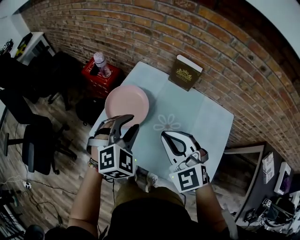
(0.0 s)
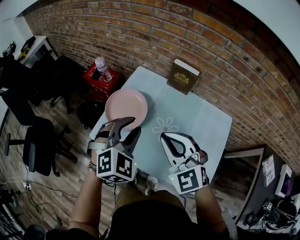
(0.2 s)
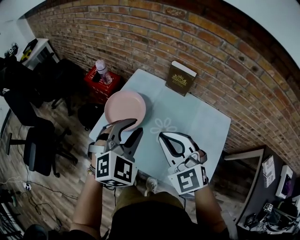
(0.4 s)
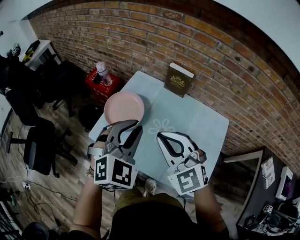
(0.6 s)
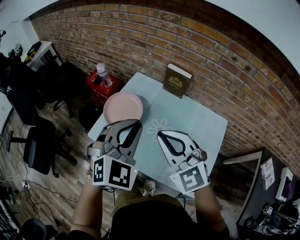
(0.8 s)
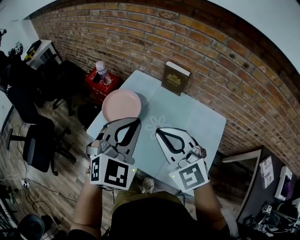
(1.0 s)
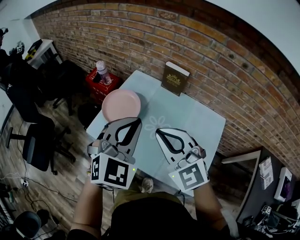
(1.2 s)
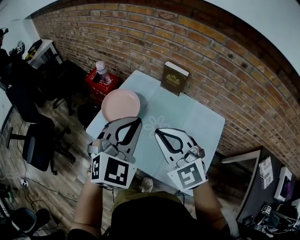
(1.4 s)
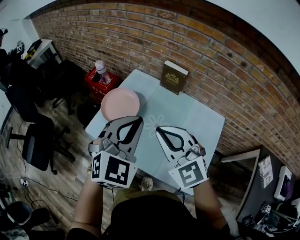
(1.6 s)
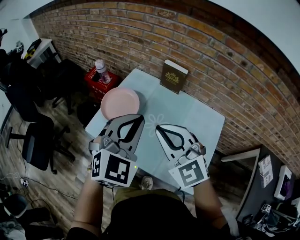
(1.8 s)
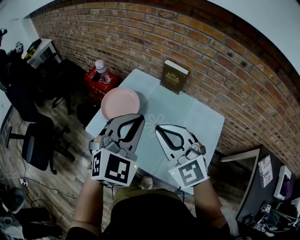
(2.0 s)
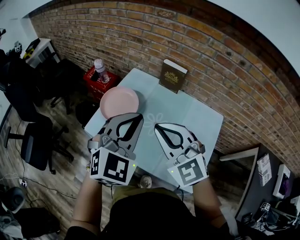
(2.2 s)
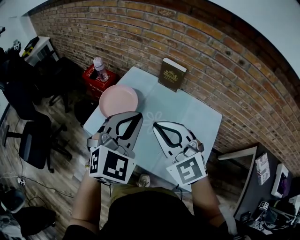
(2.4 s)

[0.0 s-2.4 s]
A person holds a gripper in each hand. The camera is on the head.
0.0 to 1.2 s: The left gripper travels upward, backward and to the right by roughly 20 cm, turns by about 20 degrees, and closes its fingers. The right gripper goes some 10 cm backward and upward.
1.2 to 2.4 s: Both grippers stay about where they are.

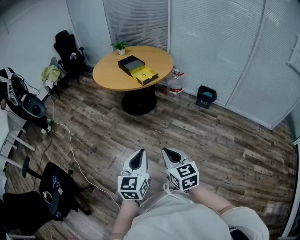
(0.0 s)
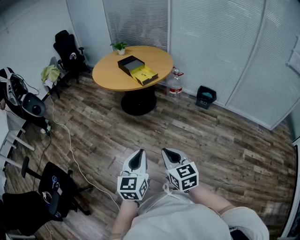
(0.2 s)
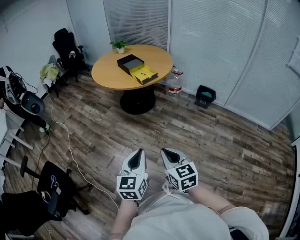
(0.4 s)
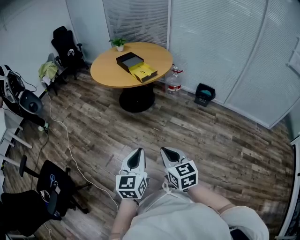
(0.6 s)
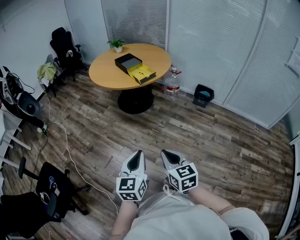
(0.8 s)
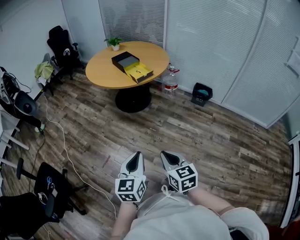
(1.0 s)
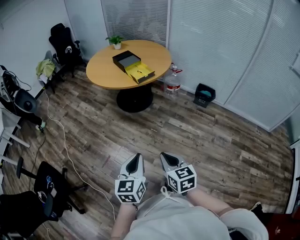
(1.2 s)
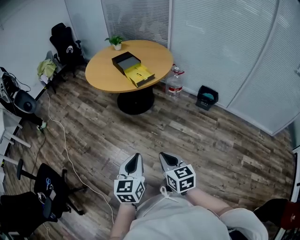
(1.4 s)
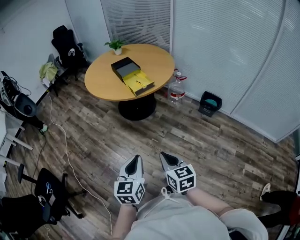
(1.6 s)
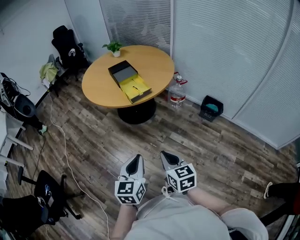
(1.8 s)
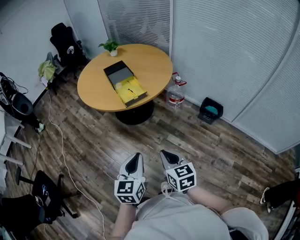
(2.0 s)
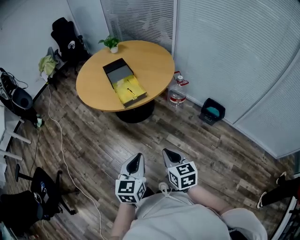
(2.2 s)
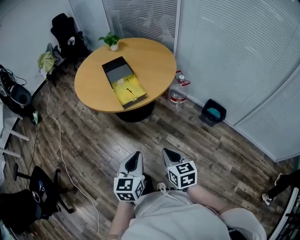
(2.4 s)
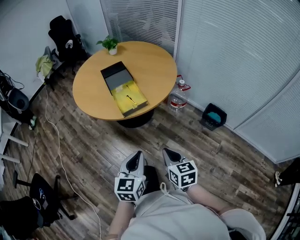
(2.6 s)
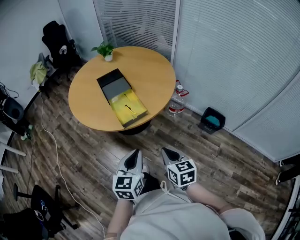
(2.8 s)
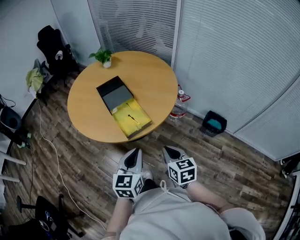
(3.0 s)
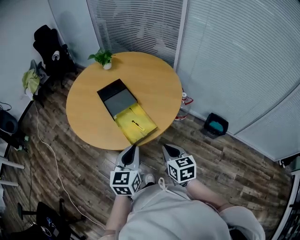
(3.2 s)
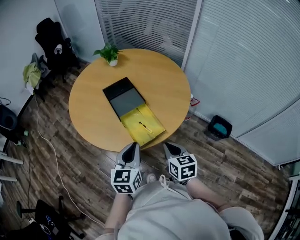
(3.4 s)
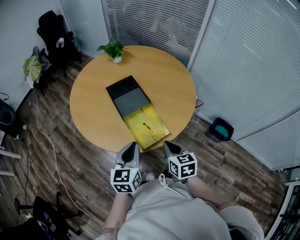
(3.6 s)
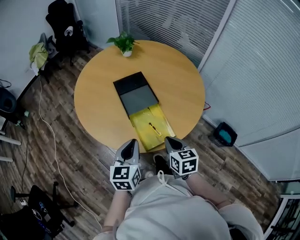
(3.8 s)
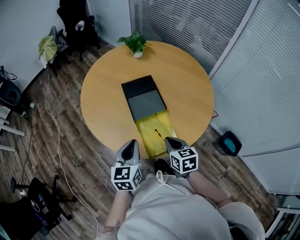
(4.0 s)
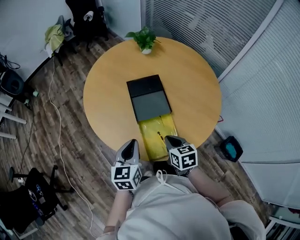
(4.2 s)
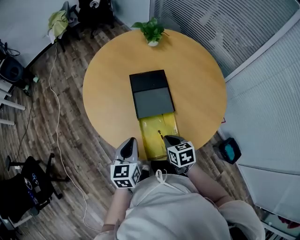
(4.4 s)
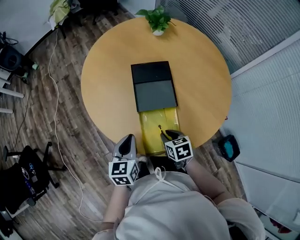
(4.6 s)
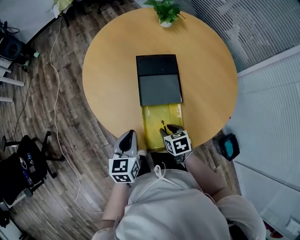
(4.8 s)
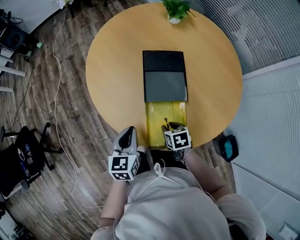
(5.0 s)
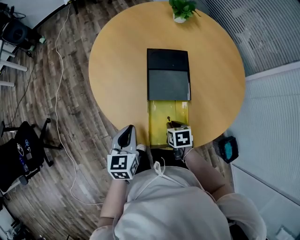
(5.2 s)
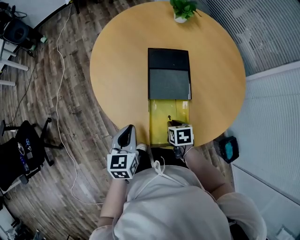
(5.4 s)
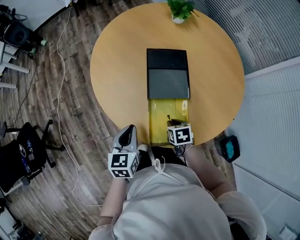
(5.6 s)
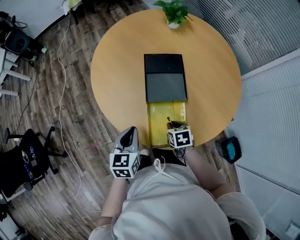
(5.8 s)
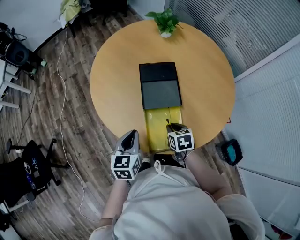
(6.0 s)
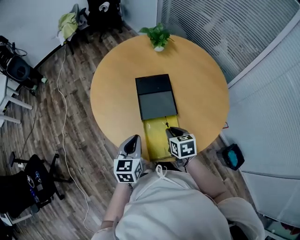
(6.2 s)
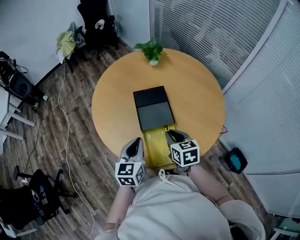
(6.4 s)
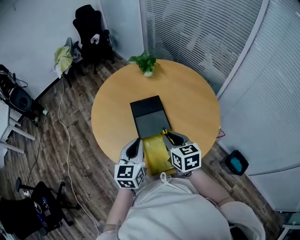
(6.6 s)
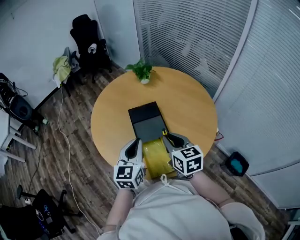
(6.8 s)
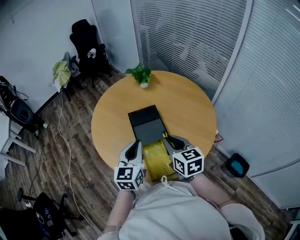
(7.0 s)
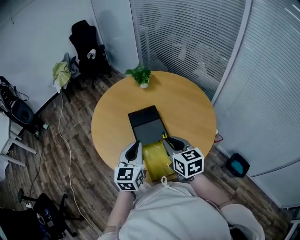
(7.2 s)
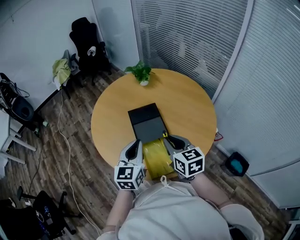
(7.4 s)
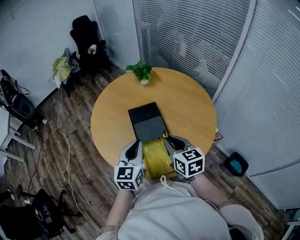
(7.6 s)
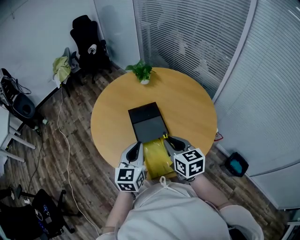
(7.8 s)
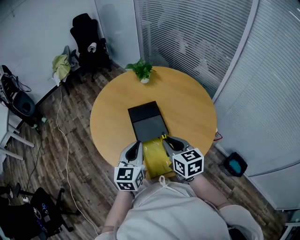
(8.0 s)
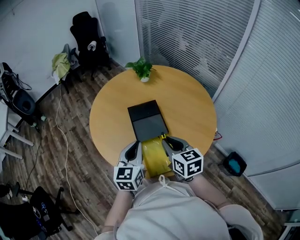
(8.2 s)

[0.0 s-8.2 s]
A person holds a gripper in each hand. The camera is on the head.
0.0 to 1.6 s: Both grippers move forward and to the right, about 20 cm.
1.6 to 3.2 s: The two grippers travel together, forward, some 50 cm.
3.2 to 5.0 s: The right gripper changes place by approximately 35 cm, tilts its fingers some 30 degrees downward, and opens up; the left gripper changes place by approximately 30 cm, and turns by approximately 40 degrees.
5.0 to 6.6 s: The right gripper travels upward by some 25 cm, tips its fingers upward by approximately 40 degrees, and closes. The left gripper is displaced upward and to the right by approximately 15 cm, and rotates roughly 20 degrees.
6.6 to 8.2 s: The grippers move only a little.

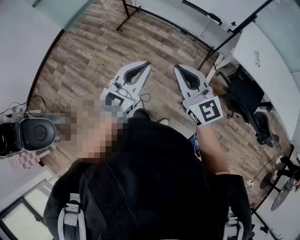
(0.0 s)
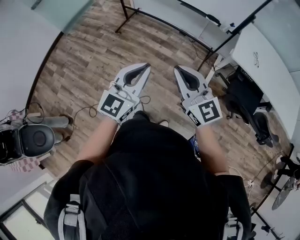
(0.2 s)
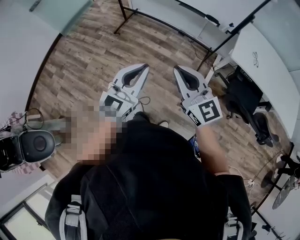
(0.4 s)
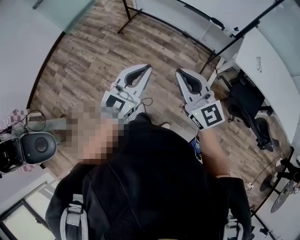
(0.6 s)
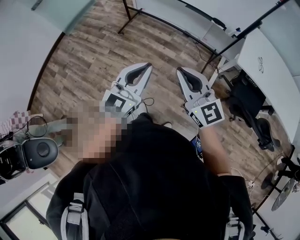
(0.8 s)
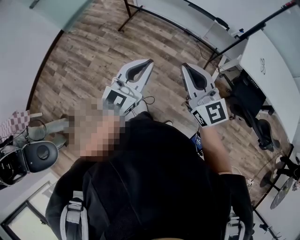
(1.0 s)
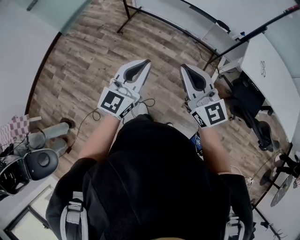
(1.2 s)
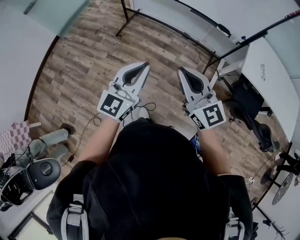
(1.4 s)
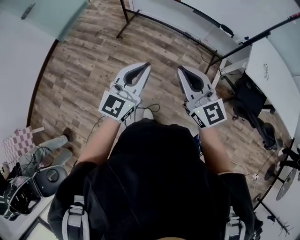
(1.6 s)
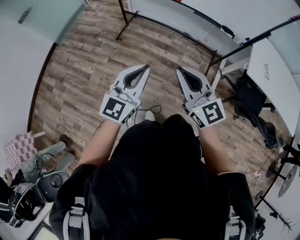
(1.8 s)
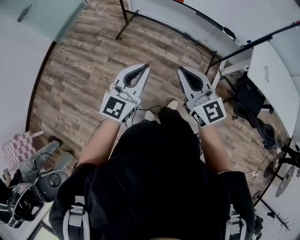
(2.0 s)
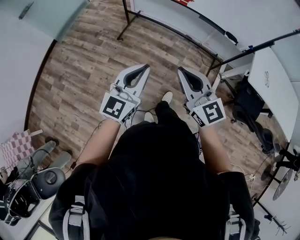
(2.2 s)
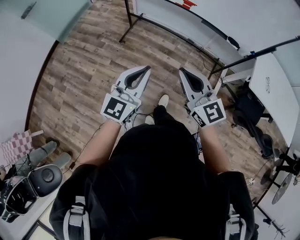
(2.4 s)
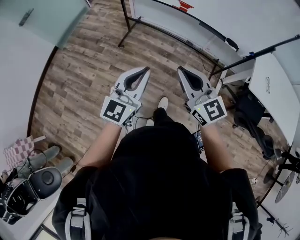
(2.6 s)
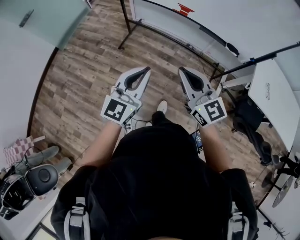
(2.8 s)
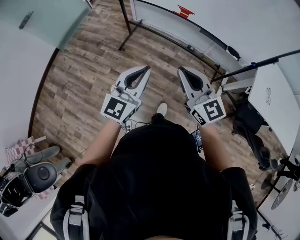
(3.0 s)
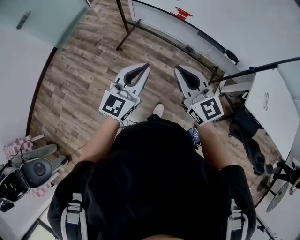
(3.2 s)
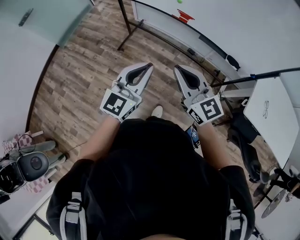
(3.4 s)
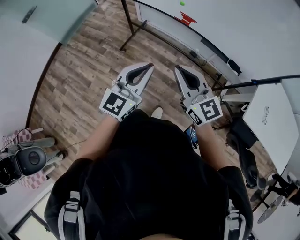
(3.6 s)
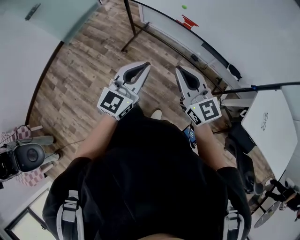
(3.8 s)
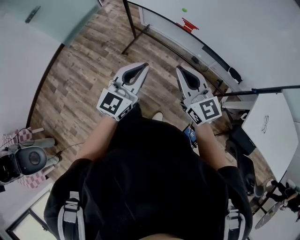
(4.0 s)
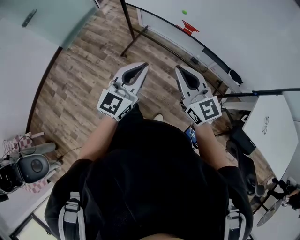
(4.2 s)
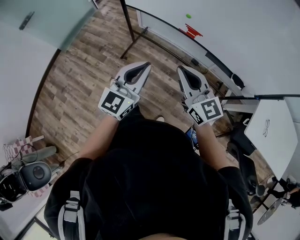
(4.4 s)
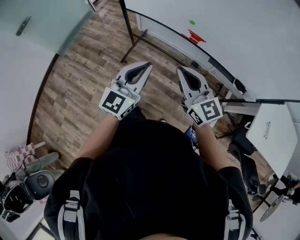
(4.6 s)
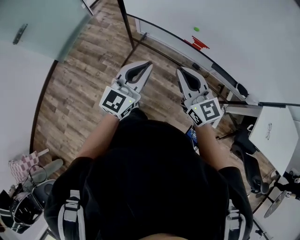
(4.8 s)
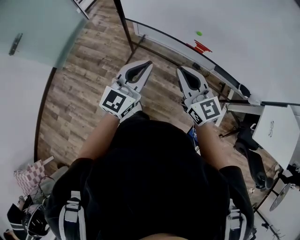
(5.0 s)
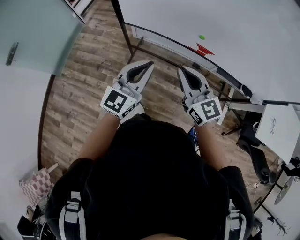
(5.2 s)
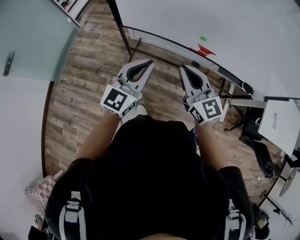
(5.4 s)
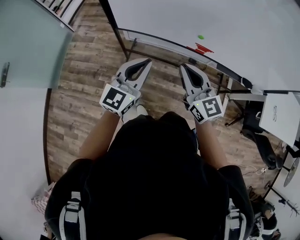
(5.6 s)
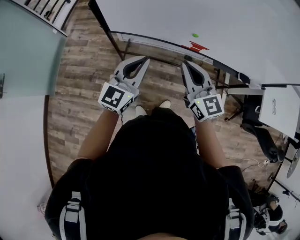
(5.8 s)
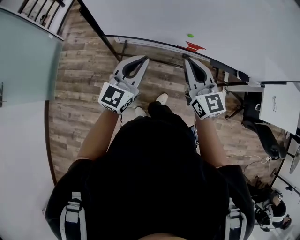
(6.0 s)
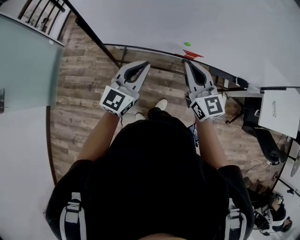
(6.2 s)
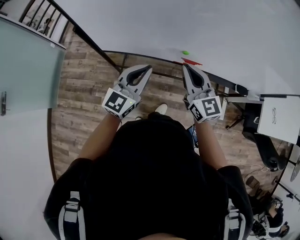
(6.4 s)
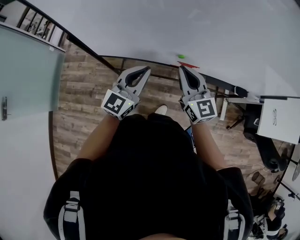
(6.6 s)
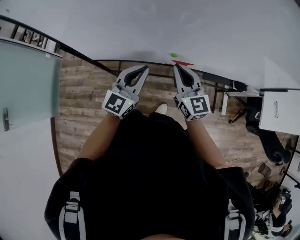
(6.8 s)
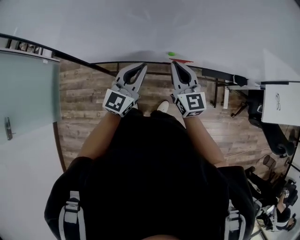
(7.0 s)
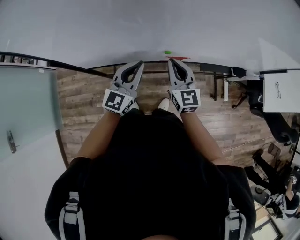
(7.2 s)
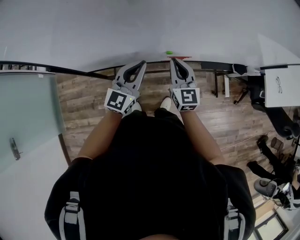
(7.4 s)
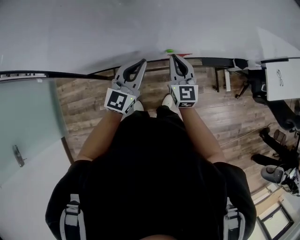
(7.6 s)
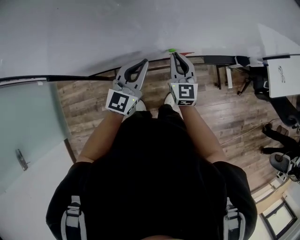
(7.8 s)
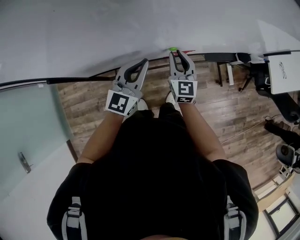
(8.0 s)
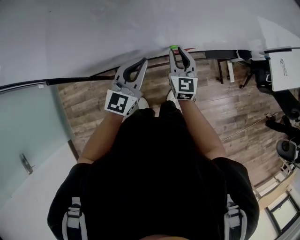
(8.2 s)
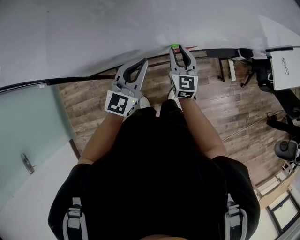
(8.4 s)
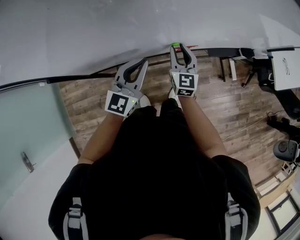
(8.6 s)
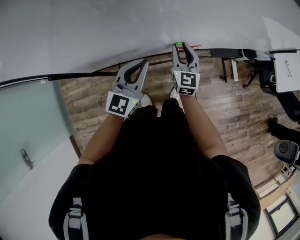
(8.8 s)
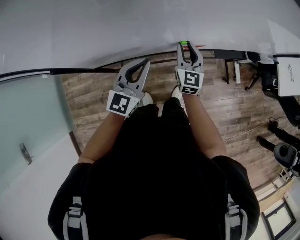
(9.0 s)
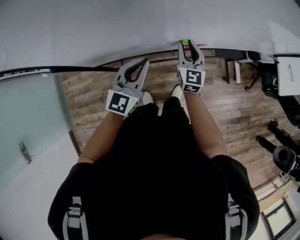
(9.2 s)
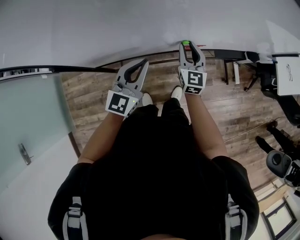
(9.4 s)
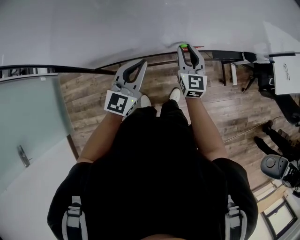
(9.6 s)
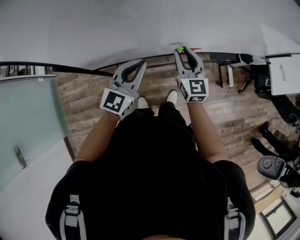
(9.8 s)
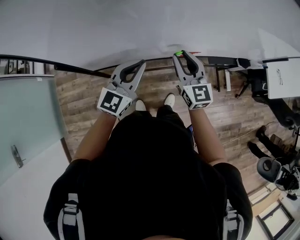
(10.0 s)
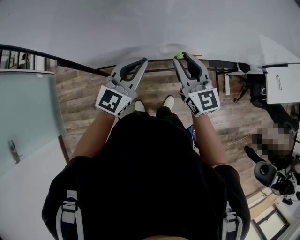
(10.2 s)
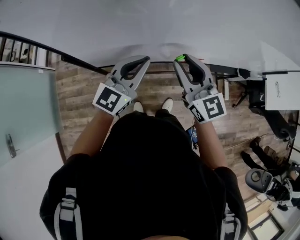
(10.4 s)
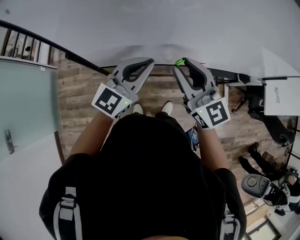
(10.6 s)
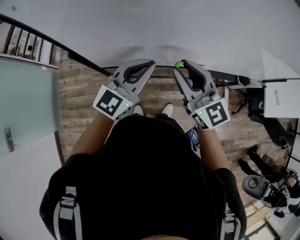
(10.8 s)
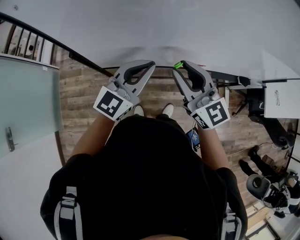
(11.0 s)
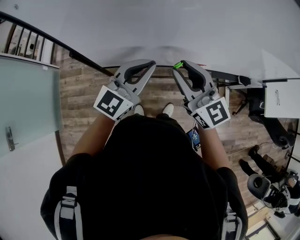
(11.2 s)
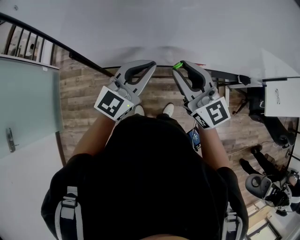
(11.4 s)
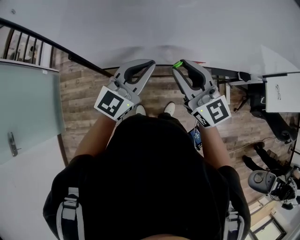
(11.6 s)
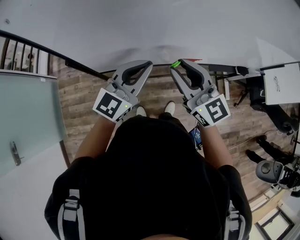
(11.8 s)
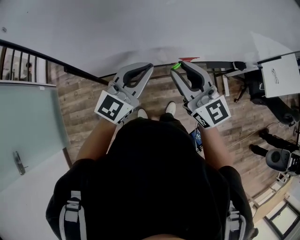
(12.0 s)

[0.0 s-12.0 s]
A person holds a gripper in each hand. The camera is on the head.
0.0 to 1.6 s: The grippers both shift forward and to the left by approximately 20 cm.
1.6 to 3.0 s: The grippers both shift forward by about 20 cm.
3.0 to 4.4 s: Both grippers travel together forward, roughly 20 cm.
4.4 to 6.0 s: The left gripper ends up about 30 cm from where it was, and swivels approximately 20 degrees; the right gripper changes place by roughly 25 cm, and changes its angle by roughly 30 degrees.
6.0 to 7.6 s: The right gripper is displaced forward and downward by roughly 20 cm, and rotates some 30 degrees. The left gripper heads forward, covering roughly 20 cm.
7.6 to 9.0 s: The right gripper shifts by some 5 cm, and opens.
9.0 to 10.4 s: The left gripper goes roughly 10 cm upward, while the right gripper goes roughly 20 cm upward and backward, and changes its angle by approximately 30 degrees.
10.4 to 12.0 s: The right gripper ends up about 5 cm from where it was.

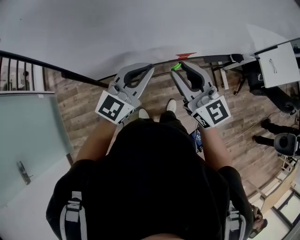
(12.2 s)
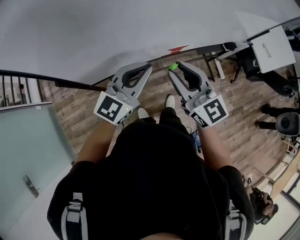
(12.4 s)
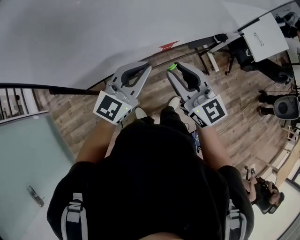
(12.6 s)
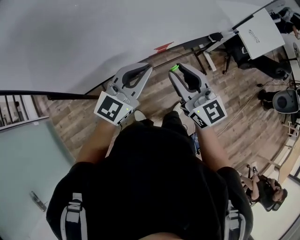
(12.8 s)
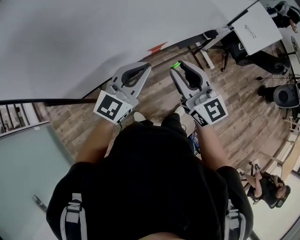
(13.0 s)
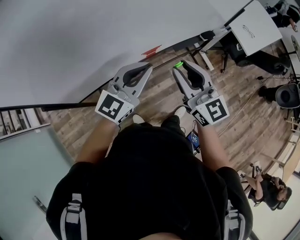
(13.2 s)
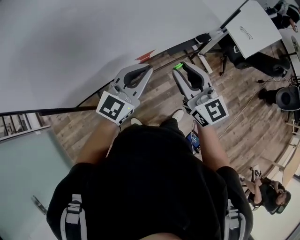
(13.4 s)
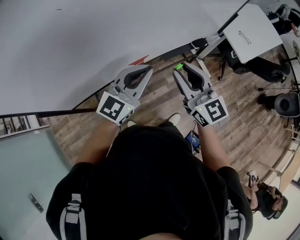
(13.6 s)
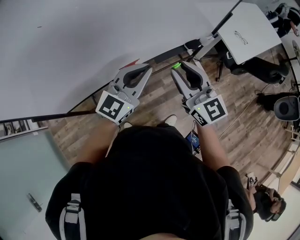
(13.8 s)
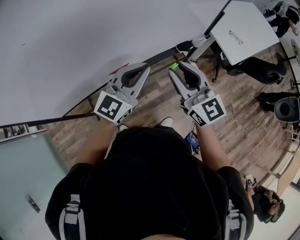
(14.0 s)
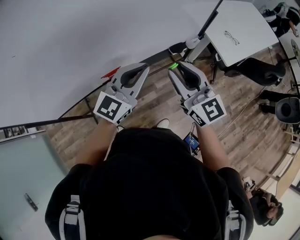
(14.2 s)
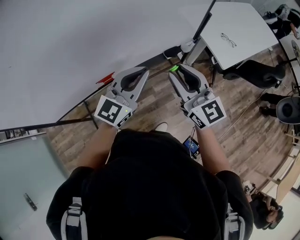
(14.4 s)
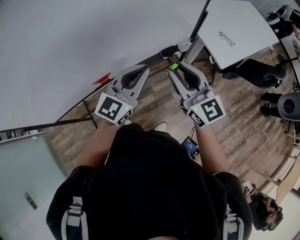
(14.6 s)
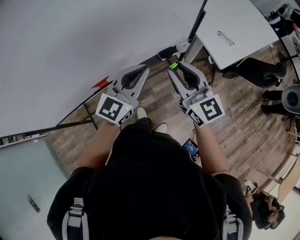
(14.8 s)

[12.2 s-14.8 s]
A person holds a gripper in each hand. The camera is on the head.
12.2 to 13.4 s: The two grippers go some 20 cm to the right.
13.4 to 14.8 s: Both grippers travel together to the right and forward, some 30 cm.
